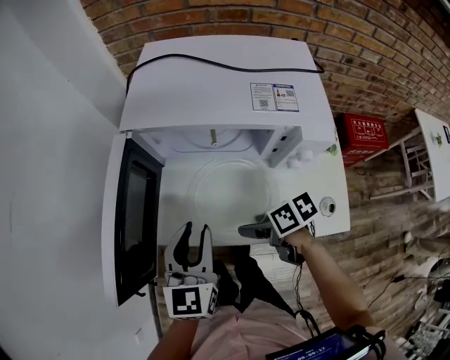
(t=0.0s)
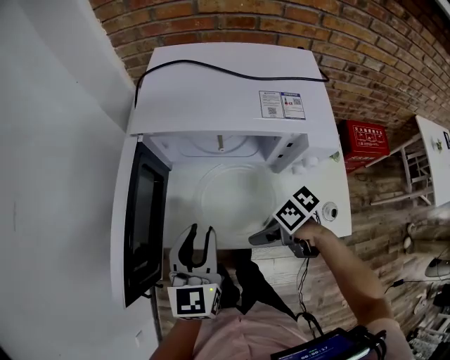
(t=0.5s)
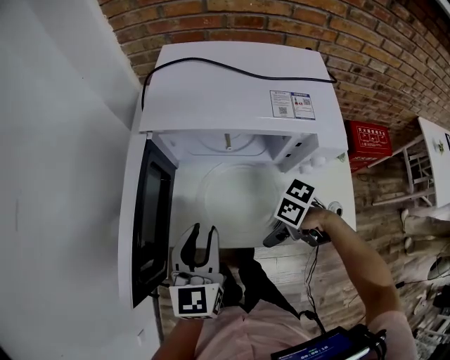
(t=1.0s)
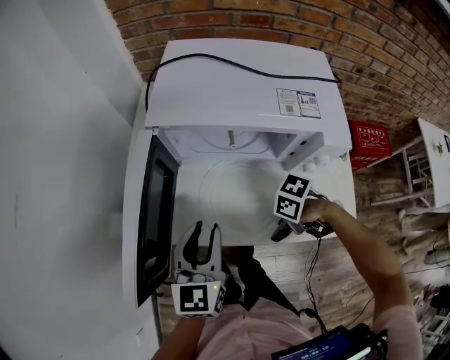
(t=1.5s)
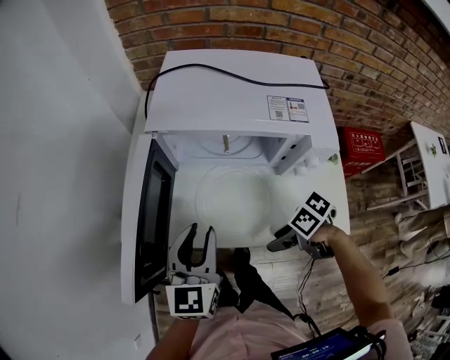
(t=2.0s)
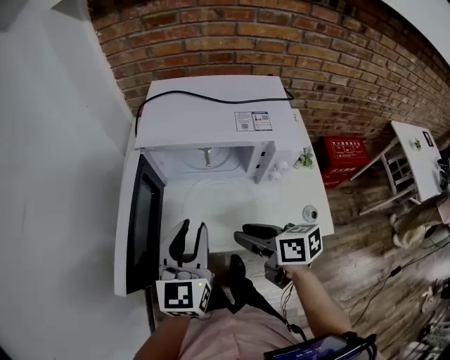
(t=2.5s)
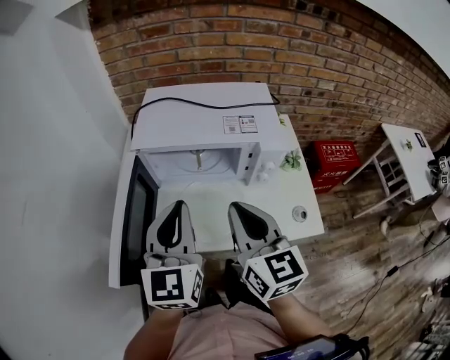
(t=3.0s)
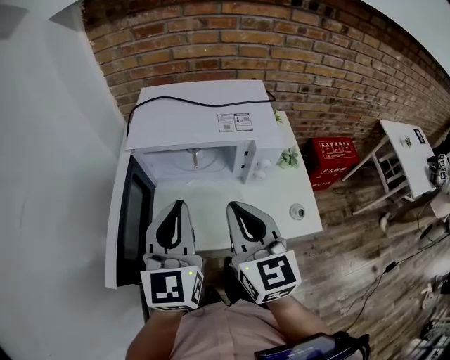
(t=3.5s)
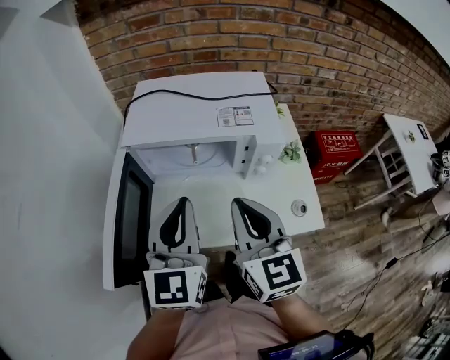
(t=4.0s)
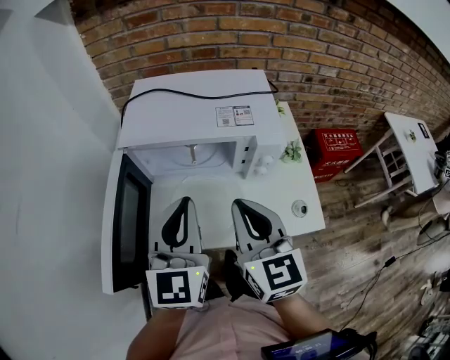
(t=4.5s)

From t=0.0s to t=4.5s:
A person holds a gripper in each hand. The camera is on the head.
From t=0.0s to t=2.0s: The right gripper changes place by approximately 5 cm, and turns by approximately 20 degrees.
From t=2.0s to t=4.5s: The left gripper is displaced upward by about 15 cm, and closes up; the right gripper goes roughly 25 cm upward, tilts its fingers about 40 degrees upward, and closes up.

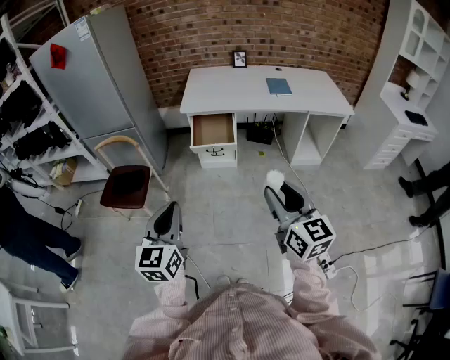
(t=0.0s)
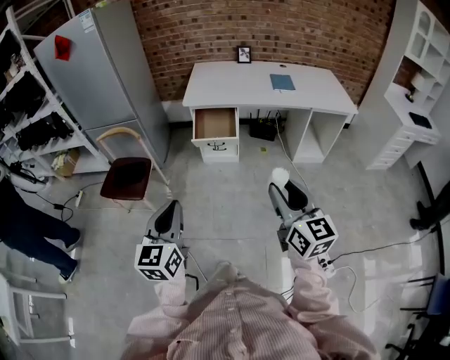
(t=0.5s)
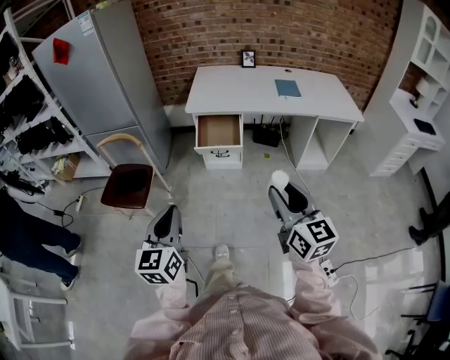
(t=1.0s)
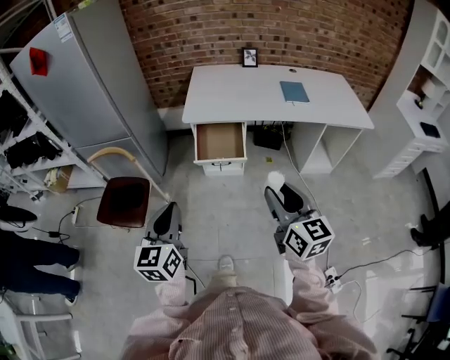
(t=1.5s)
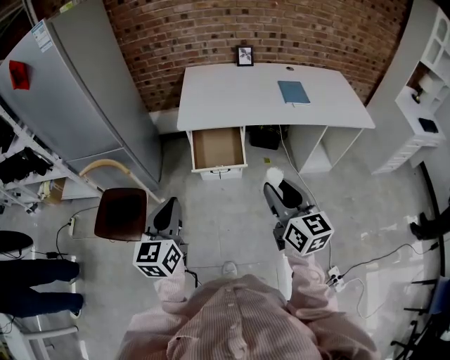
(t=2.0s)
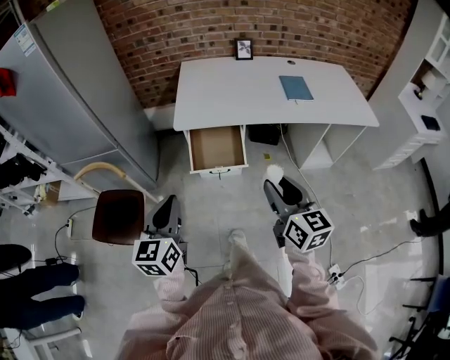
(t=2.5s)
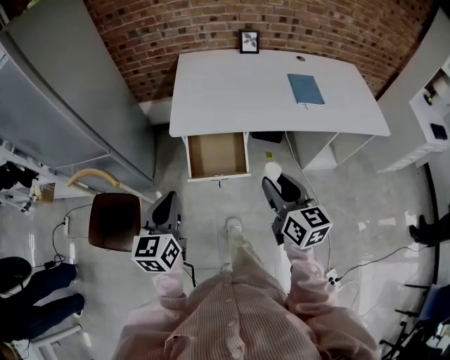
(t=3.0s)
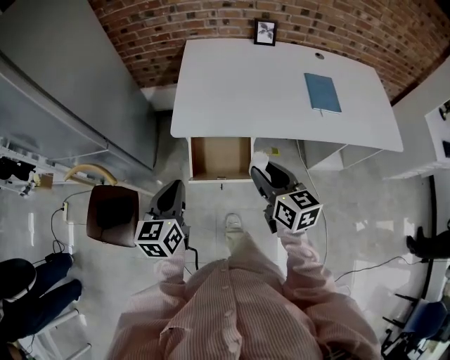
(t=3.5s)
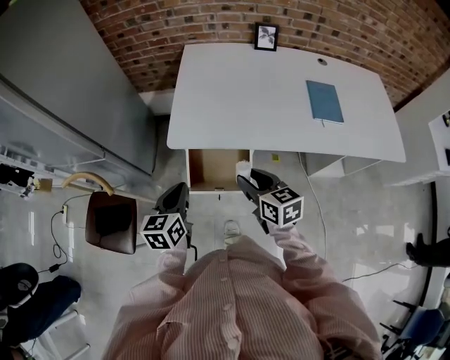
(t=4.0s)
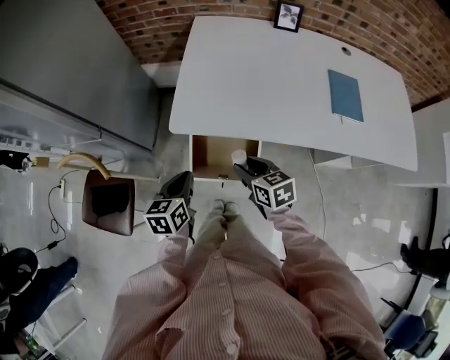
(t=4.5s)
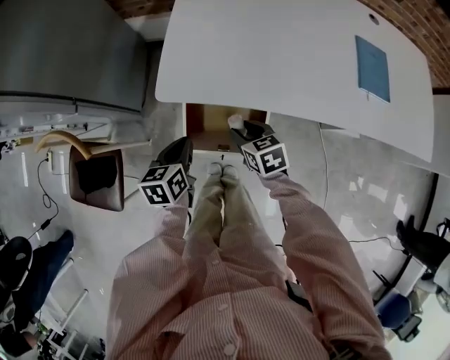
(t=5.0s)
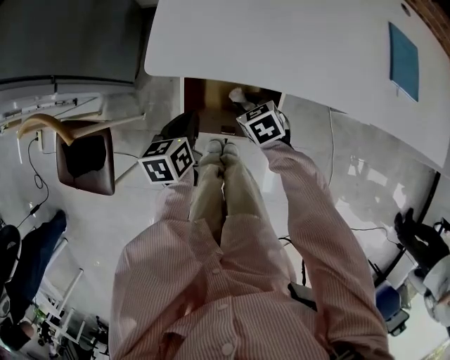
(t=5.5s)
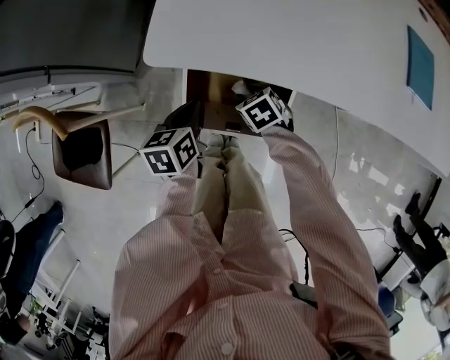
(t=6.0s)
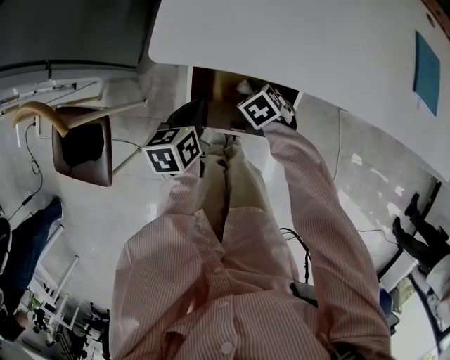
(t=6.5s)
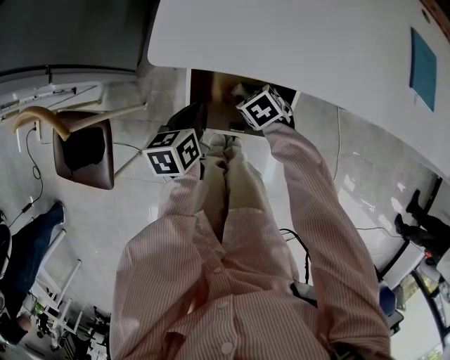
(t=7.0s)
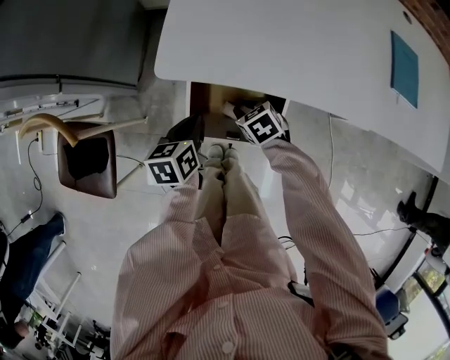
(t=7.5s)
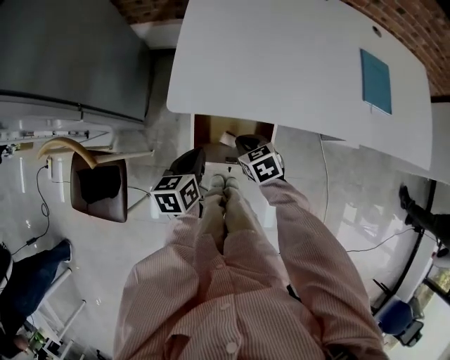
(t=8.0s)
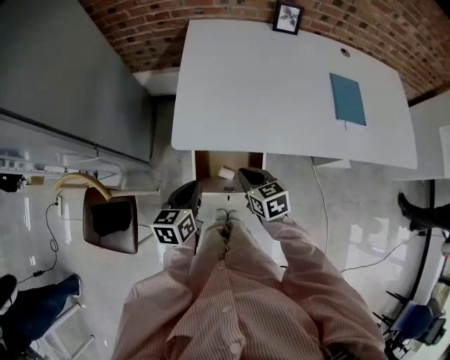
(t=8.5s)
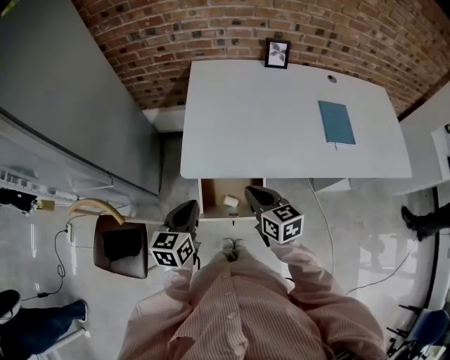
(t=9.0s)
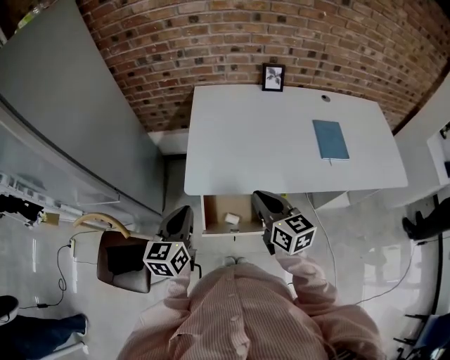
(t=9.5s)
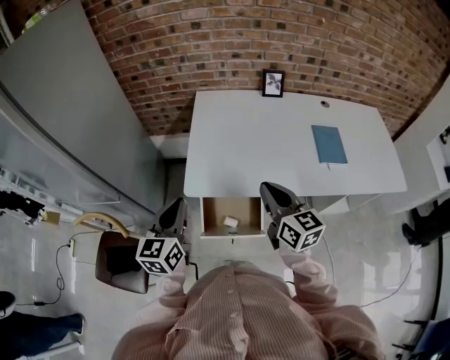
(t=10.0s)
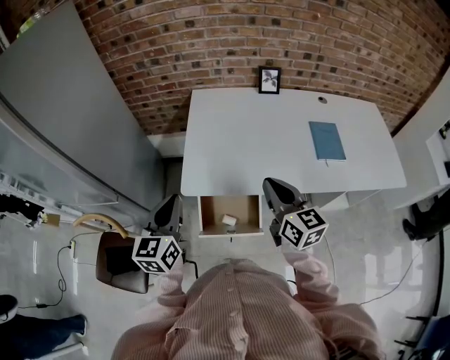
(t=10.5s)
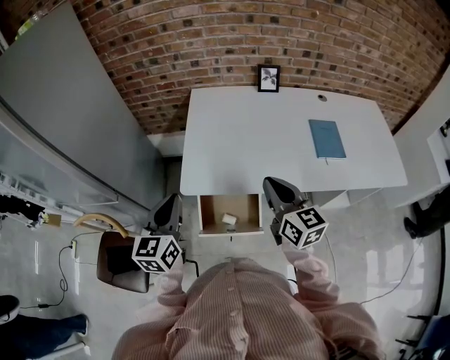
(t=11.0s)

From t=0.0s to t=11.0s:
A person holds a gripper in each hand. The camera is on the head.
From t=0.0s to t=2.0s: Both grippers travel together forward, some 25 cm.
From t=2.0s to t=3.5s: Both grippers move forward, some 25 cm.
From t=3.5s to t=5.5s: The two grippers go roughly 35 cm downward and forward. The right gripper points its fingers approximately 40 degrees further downward, while the left gripper turns by some 30 degrees.
From t=7.5s to t=9.0s: The two grippers go some 25 cm upward. The left gripper turns by approximately 30 degrees. The right gripper angles its fingers upward, by about 40 degrees, and closes its fingers.
From t=9.0s to t=11.0s: The right gripper shifts approximately 15 cm upward and to the right; the left gripper moves upward, about 15 cm.

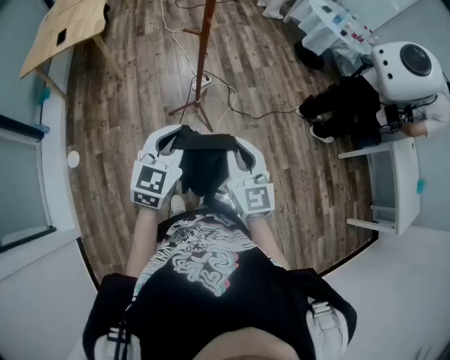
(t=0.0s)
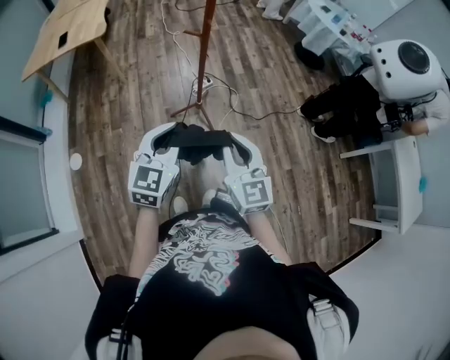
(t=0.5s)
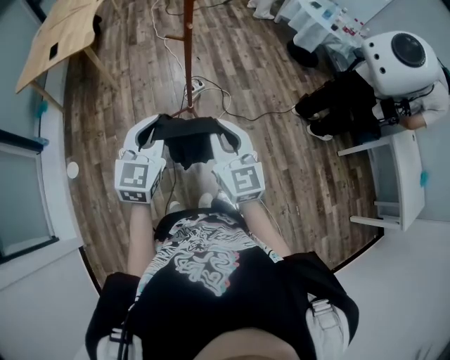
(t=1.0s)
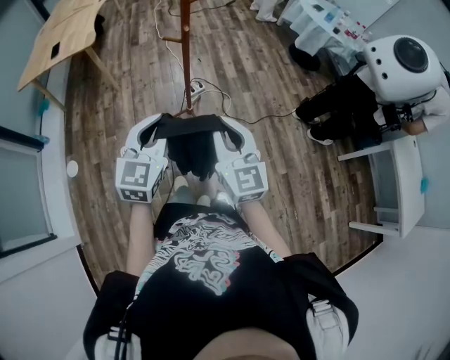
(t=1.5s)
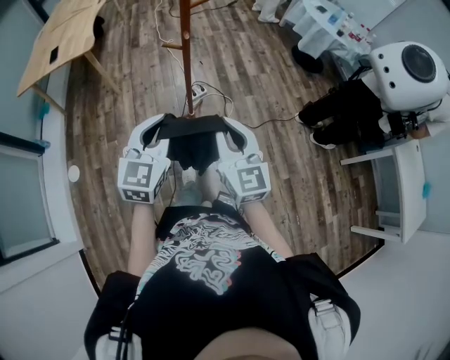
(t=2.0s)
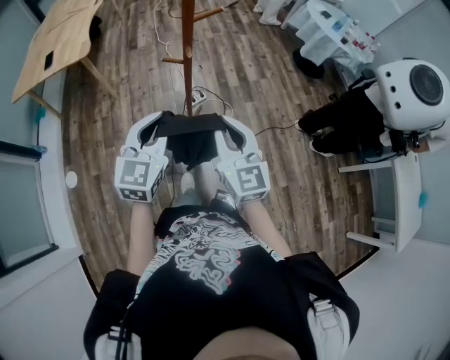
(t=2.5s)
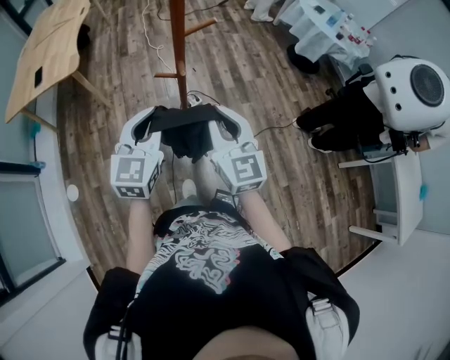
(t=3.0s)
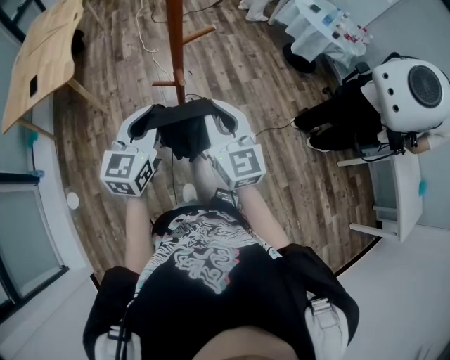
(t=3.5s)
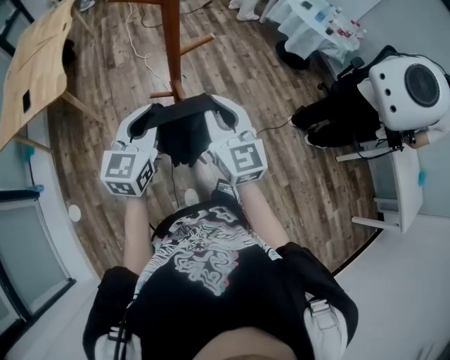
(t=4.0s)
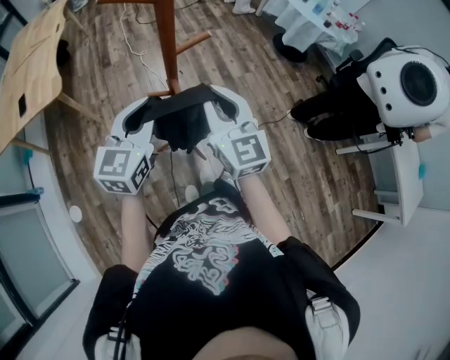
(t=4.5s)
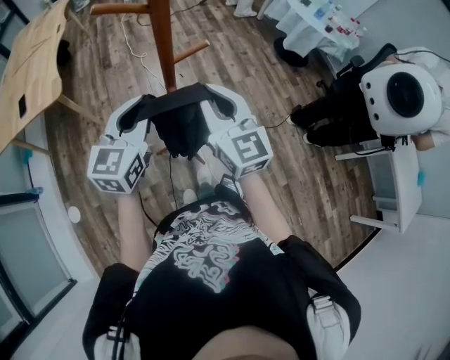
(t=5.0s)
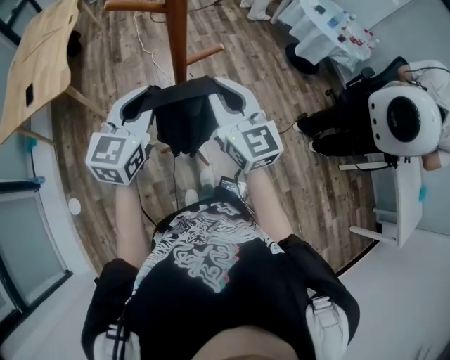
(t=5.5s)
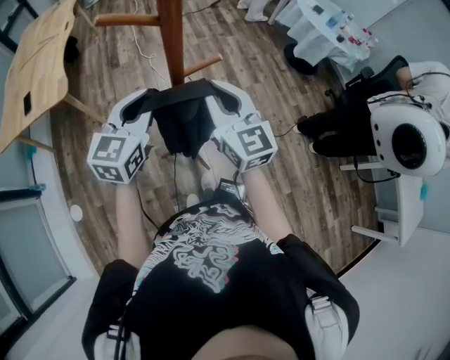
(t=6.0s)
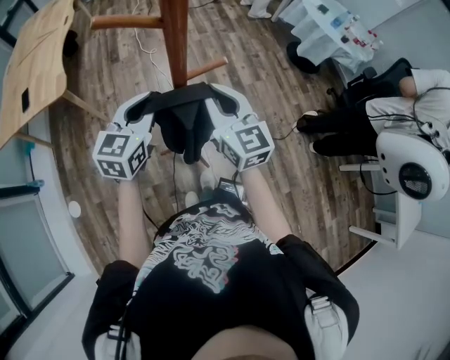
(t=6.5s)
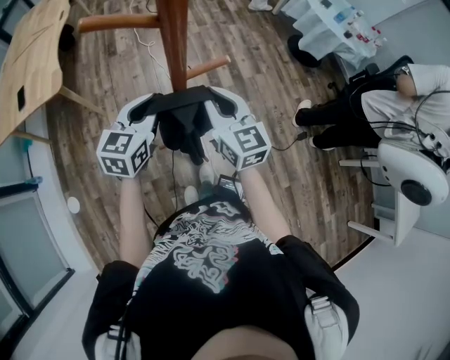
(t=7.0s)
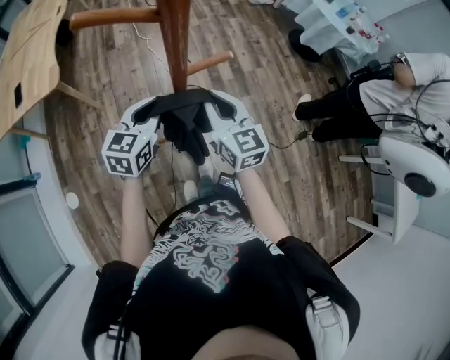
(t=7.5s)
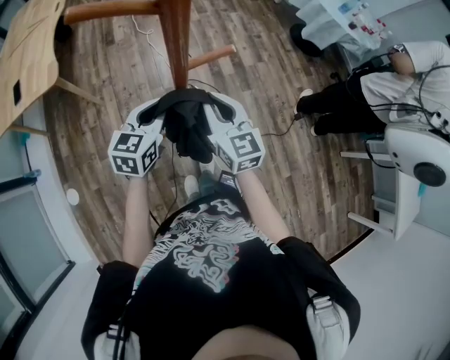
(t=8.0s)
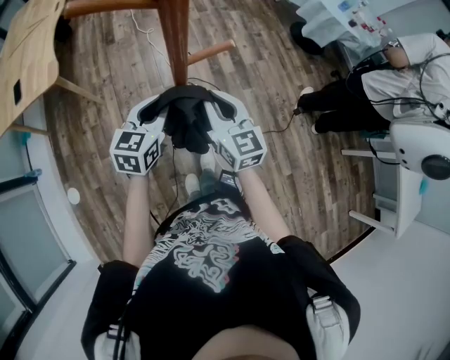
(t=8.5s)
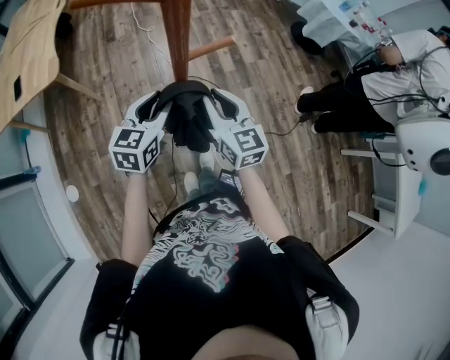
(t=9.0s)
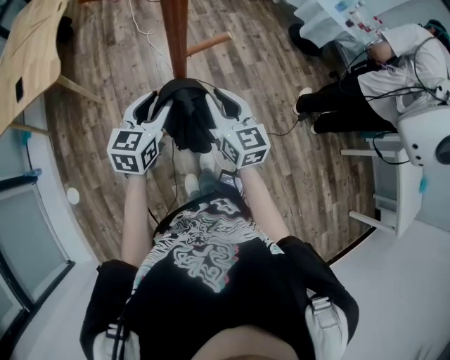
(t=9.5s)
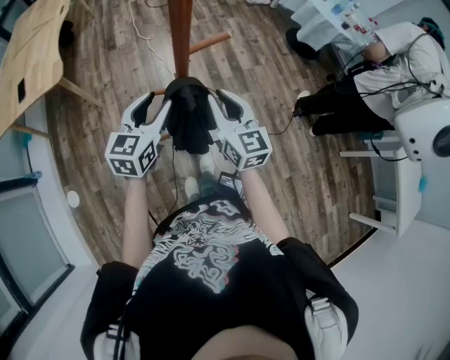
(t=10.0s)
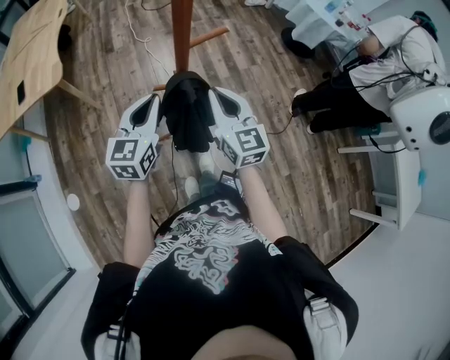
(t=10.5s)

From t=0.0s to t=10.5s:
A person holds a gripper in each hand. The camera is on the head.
From t=0.0s to t=2.0s: Both grippers move forward, approximately 10 cm.
From t=2.0s to t=4.0s: The grippers both shift forward by about 30 cm.
From t=4.0s to t=6.5s: Both grippers travel together forward, roughly 10 cm.
From t=6.5s to t=8.5s: Both grippers travel together downward, approximately 10 cm.
From t=8.5s to t=10.5s: The right gripper is displaced backward by about 5 cm. The left gripper travels backward and upward by about 10 cm, and opens, then closes again.

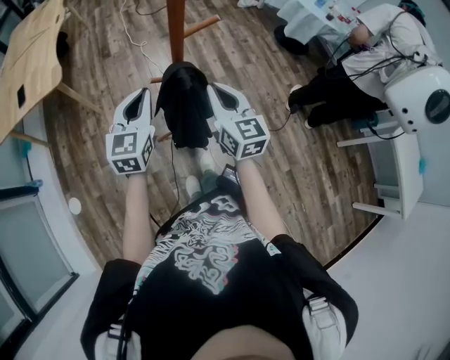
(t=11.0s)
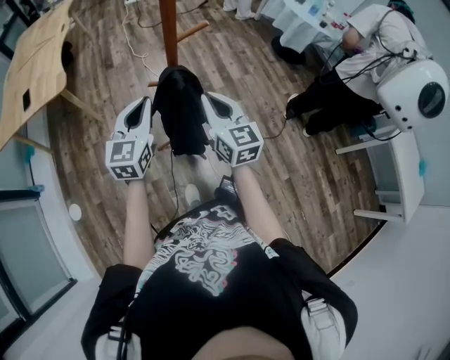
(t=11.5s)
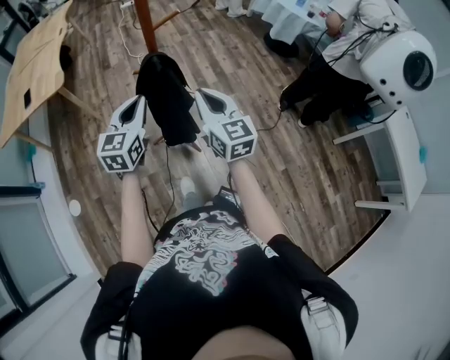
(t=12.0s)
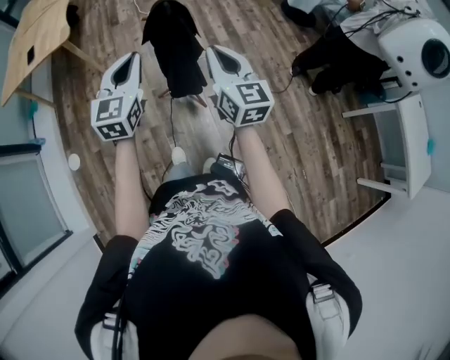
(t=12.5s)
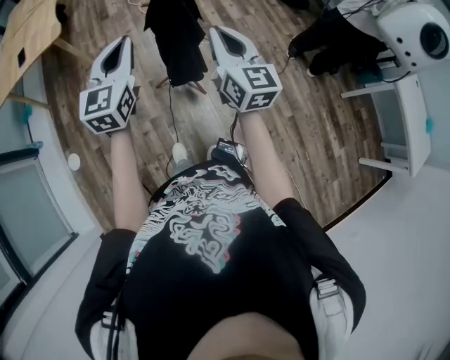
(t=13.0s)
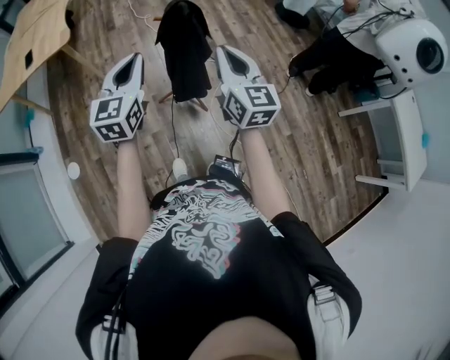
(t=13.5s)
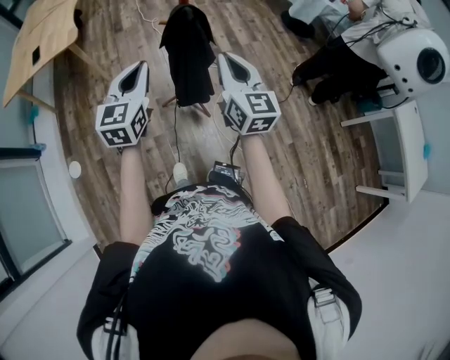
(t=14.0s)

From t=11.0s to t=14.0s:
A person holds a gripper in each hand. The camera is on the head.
From t=11.0s to t=12.5s: The two grippers go about 20 cm backward.
From t=12.5s to t=14.0s: The left gripper goes some 5 cm to the left.
